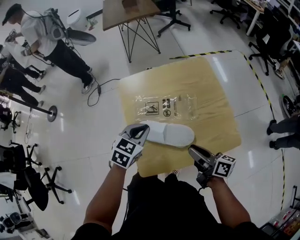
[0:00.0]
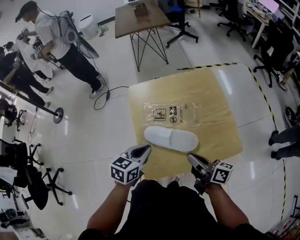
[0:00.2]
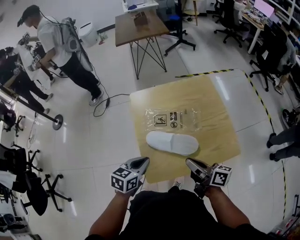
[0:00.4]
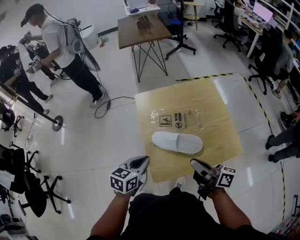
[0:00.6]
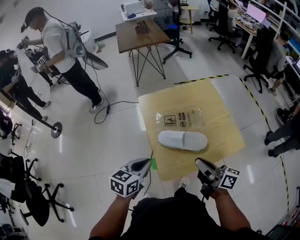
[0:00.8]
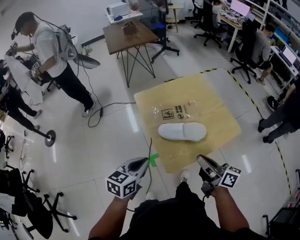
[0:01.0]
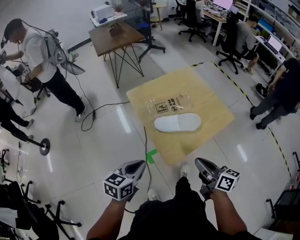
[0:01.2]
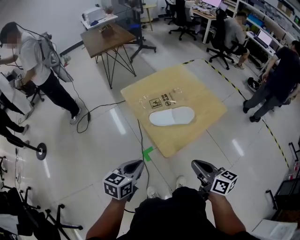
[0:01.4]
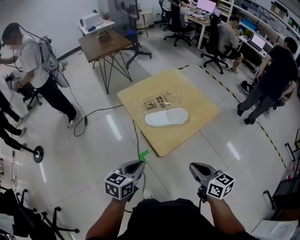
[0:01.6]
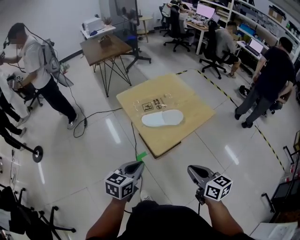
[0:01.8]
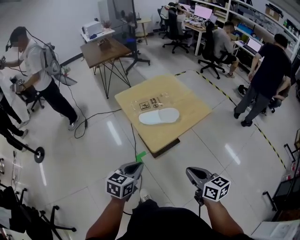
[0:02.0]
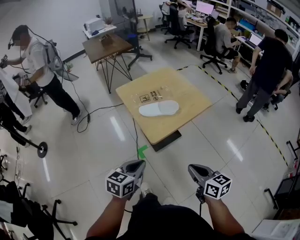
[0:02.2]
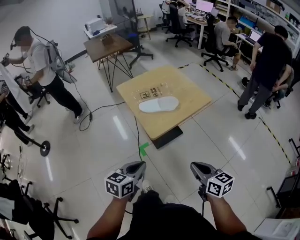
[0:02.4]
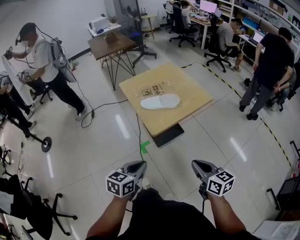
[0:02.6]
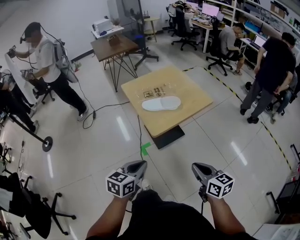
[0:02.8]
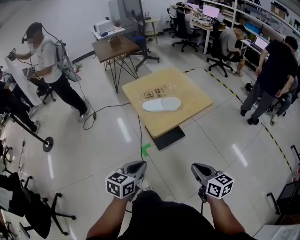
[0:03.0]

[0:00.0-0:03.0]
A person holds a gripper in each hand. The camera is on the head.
0:00.0 to 0:01.6: The two grippers go some 35 cm backward and to the left. The left gripper turns by roughly 30 degrees. Meanwhile the right gripper rotates about 40 degrees, and closes its fingers.
0:01.6 to 0:03.0: Both grippers move backward and to the right, some 20 cm.

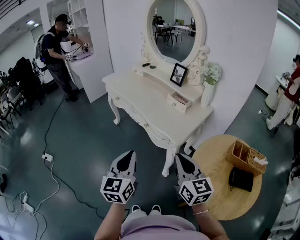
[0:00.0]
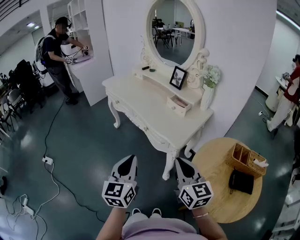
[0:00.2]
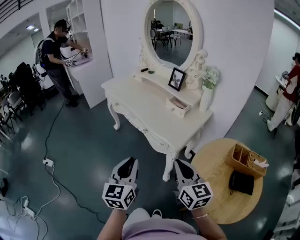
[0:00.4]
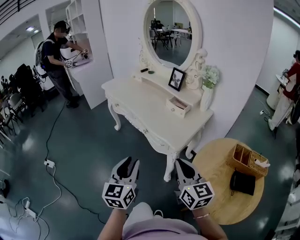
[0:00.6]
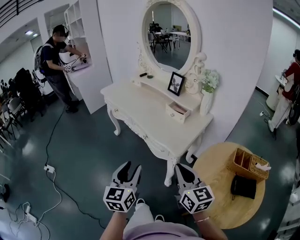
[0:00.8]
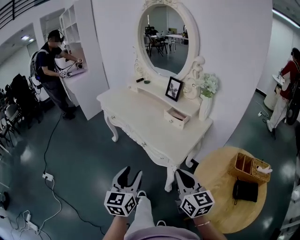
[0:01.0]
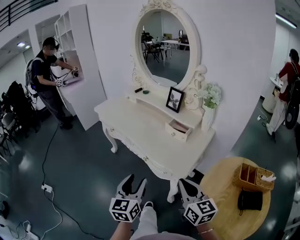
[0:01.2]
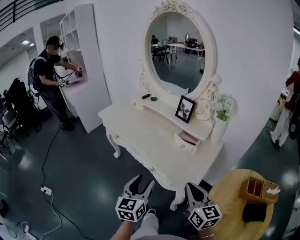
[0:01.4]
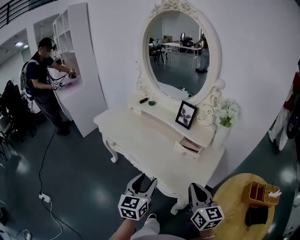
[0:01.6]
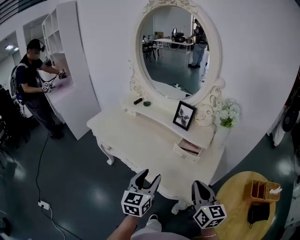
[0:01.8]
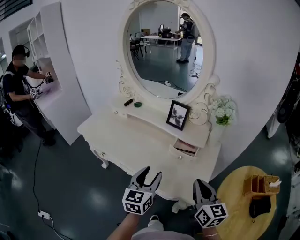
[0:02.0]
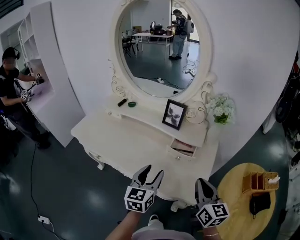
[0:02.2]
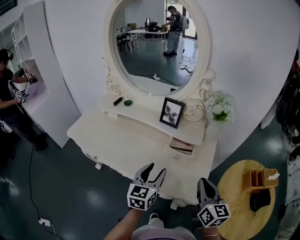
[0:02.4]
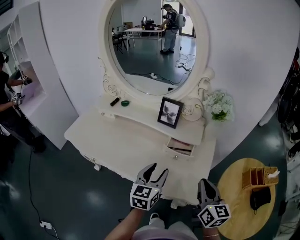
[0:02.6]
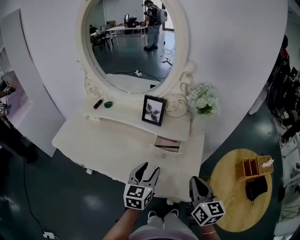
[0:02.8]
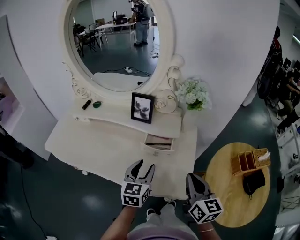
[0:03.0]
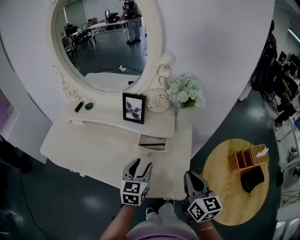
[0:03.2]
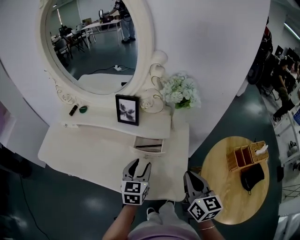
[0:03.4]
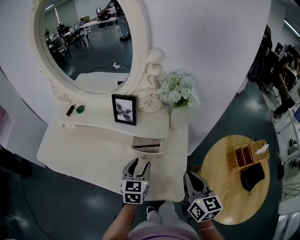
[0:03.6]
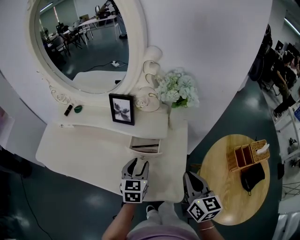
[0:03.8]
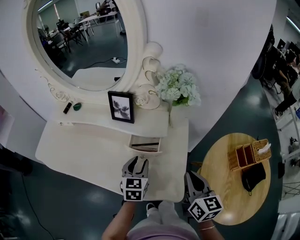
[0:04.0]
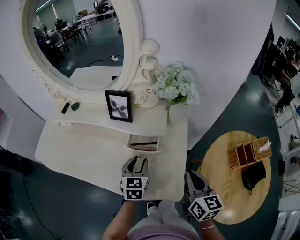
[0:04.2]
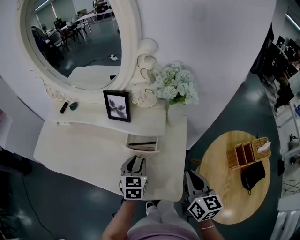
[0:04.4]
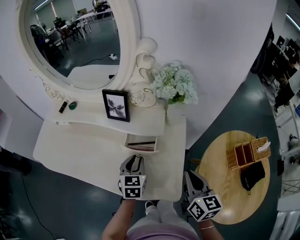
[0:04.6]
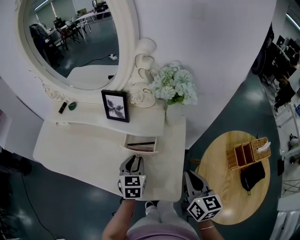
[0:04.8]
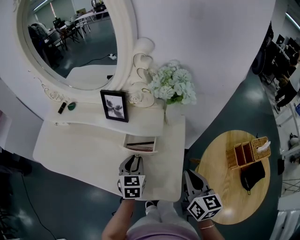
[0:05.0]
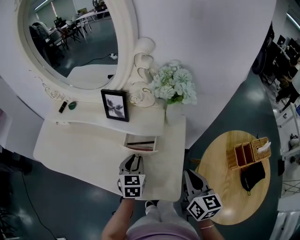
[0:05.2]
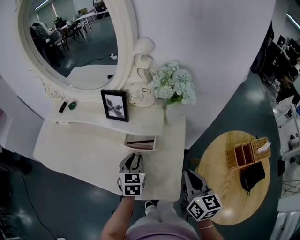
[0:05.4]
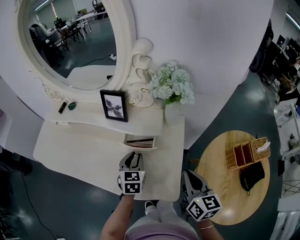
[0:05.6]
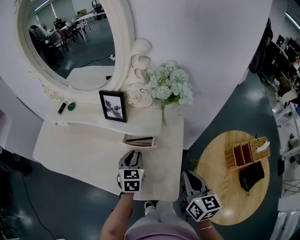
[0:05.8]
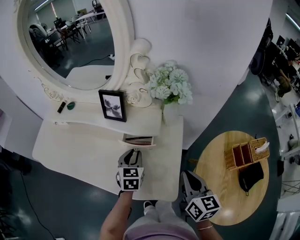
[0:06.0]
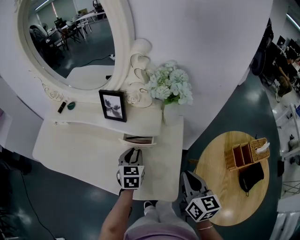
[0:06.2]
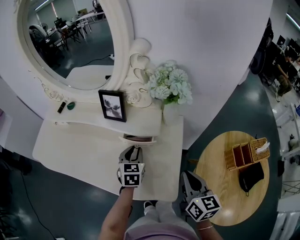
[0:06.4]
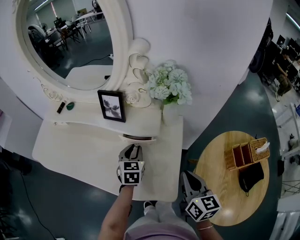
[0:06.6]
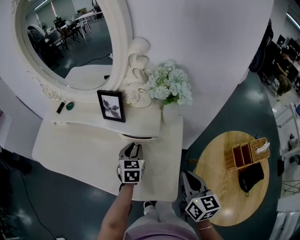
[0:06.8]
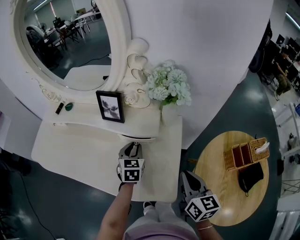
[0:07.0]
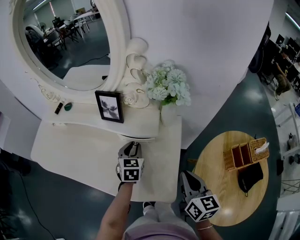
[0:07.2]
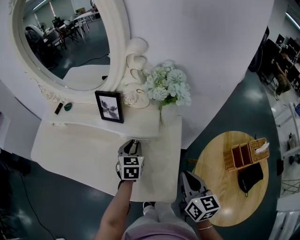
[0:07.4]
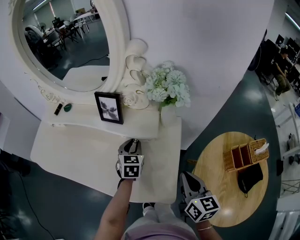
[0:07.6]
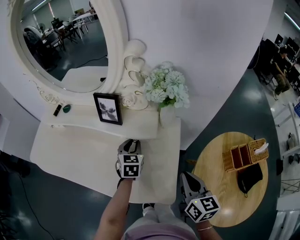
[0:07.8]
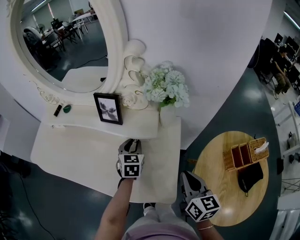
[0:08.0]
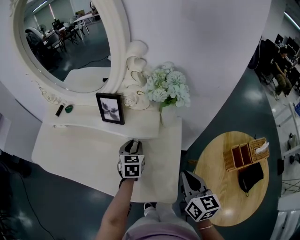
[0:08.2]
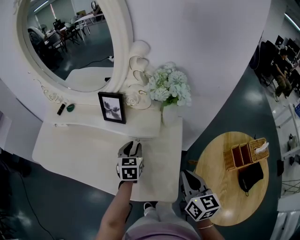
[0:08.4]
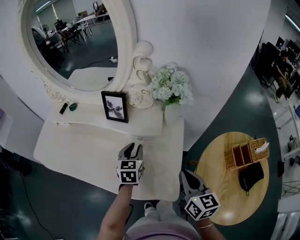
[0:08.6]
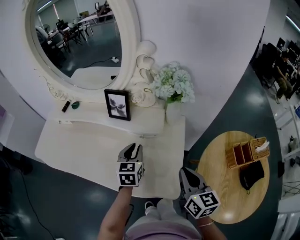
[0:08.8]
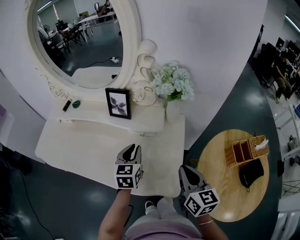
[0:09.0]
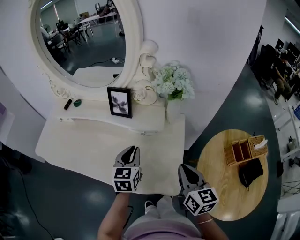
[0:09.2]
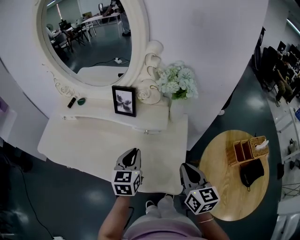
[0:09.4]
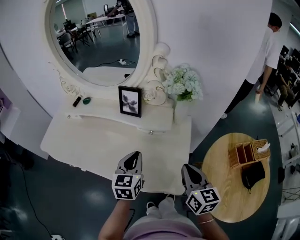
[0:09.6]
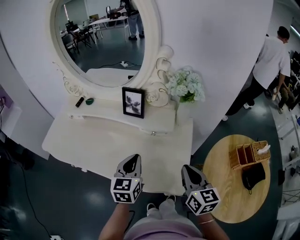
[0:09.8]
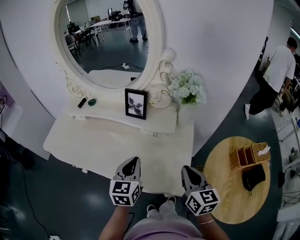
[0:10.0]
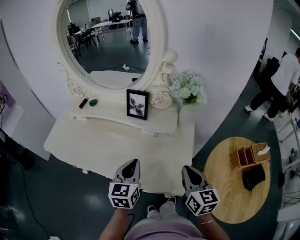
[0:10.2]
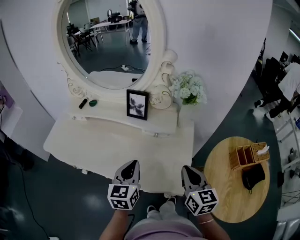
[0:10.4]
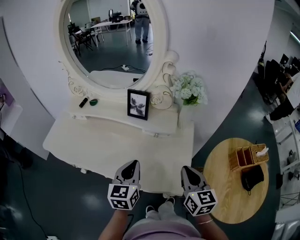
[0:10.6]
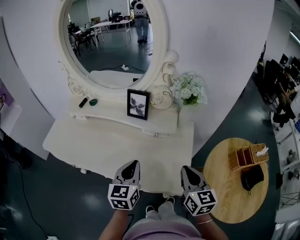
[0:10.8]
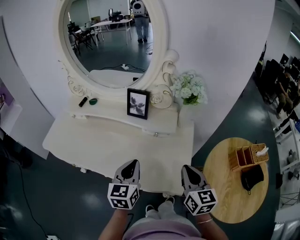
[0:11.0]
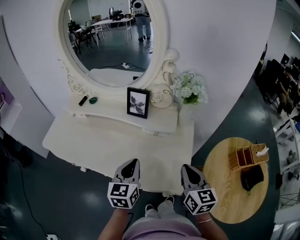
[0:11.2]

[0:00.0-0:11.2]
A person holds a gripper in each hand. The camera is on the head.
0:00.0 to 0:01.6: The two grippers go roughly 25 cm forward. The left gripper opens.
0:01.6 to 0:03.2: The right gripper ends up some 10 cm from where it was, and turns by roughly 30 degrees. The left gripper changes place by about 20 cm, and swivels roughly 30 degrees.
0:03.2 to 0:04.8: The right gripper moves about 5 cm. Meanwhile the left gripper moves downward and forward, some 10 cm, and closes its fingers.
0:04.8 to 0:06.4: There are only small adjustments of the grippers.
0:06.4 to 0:08.0: The left gripper travels forward by roughly 5 cm.
0:08.0 to 0:09.6: The right gripper moves to the left, approximately 5 cm. Meanwhile the left gripper is displaced backward, upward and to the left by some 15 cm.
0:09.6 to 0:11.2: The left gripper changes place by approximately 5 cm.

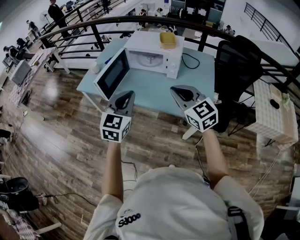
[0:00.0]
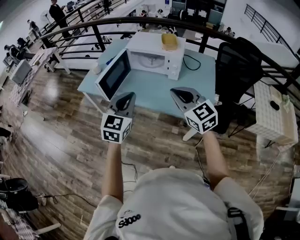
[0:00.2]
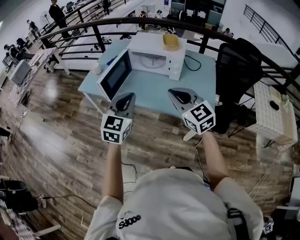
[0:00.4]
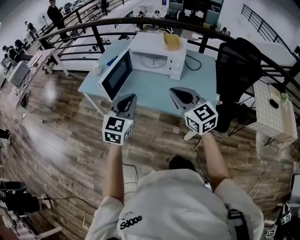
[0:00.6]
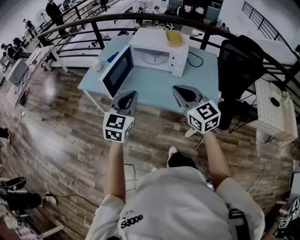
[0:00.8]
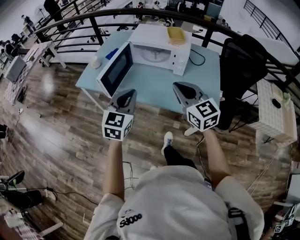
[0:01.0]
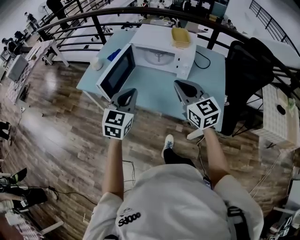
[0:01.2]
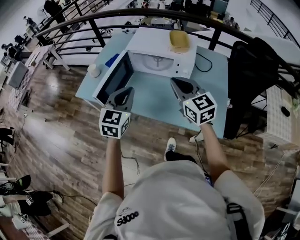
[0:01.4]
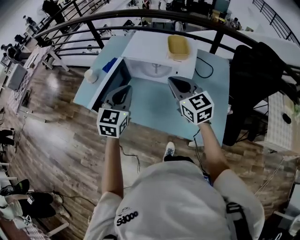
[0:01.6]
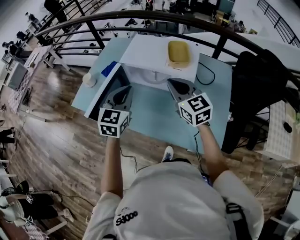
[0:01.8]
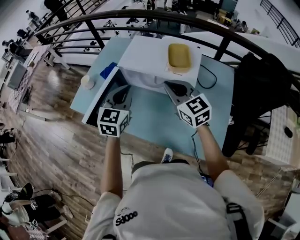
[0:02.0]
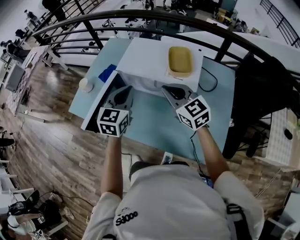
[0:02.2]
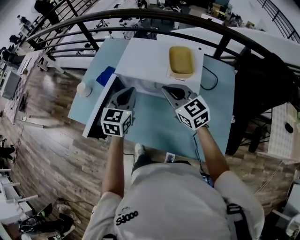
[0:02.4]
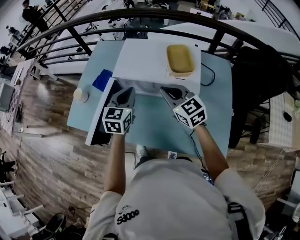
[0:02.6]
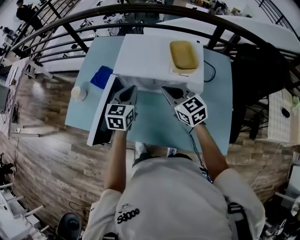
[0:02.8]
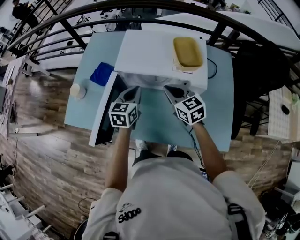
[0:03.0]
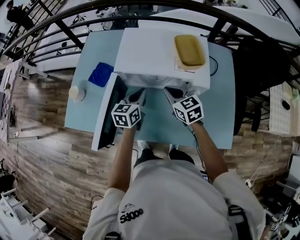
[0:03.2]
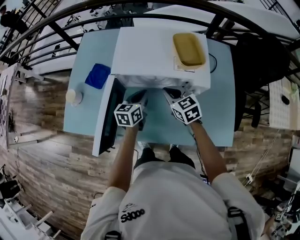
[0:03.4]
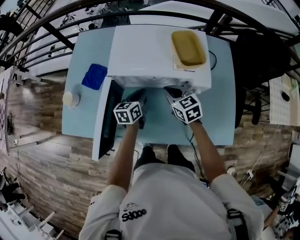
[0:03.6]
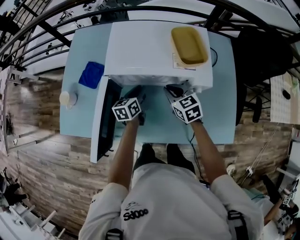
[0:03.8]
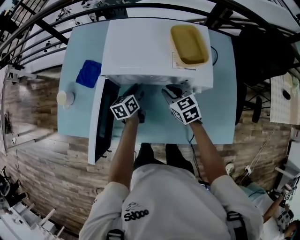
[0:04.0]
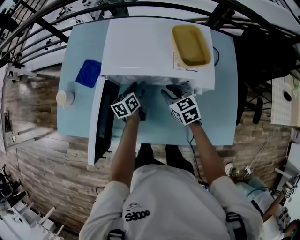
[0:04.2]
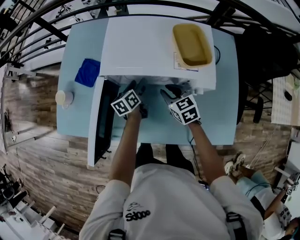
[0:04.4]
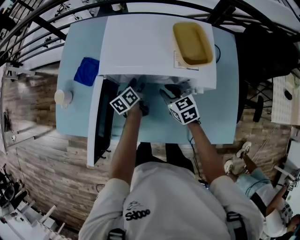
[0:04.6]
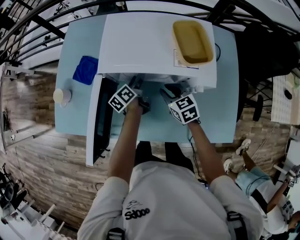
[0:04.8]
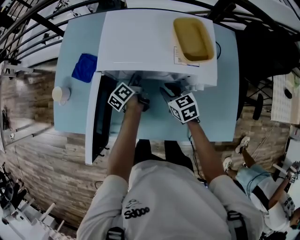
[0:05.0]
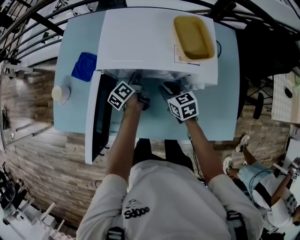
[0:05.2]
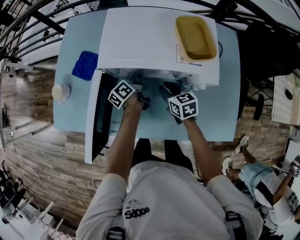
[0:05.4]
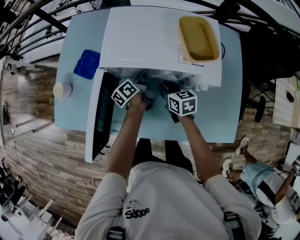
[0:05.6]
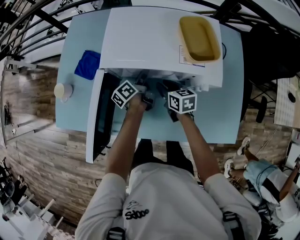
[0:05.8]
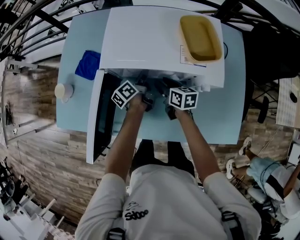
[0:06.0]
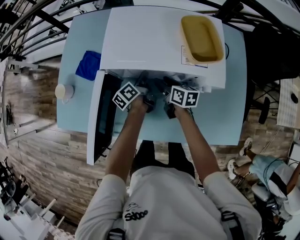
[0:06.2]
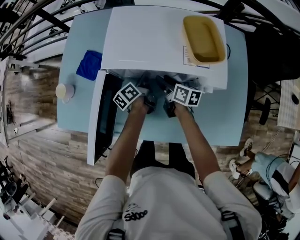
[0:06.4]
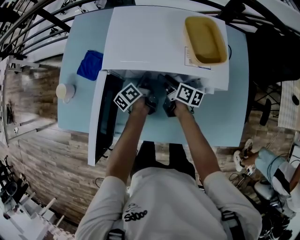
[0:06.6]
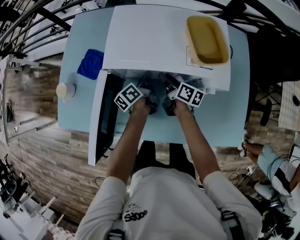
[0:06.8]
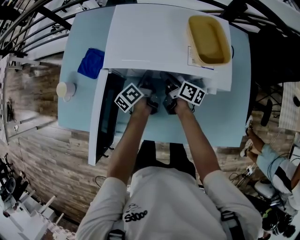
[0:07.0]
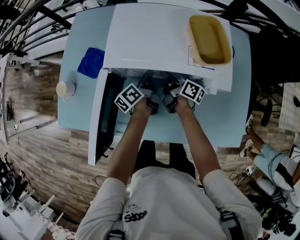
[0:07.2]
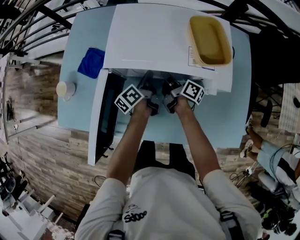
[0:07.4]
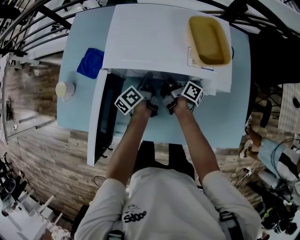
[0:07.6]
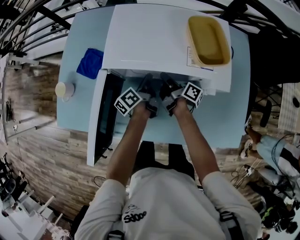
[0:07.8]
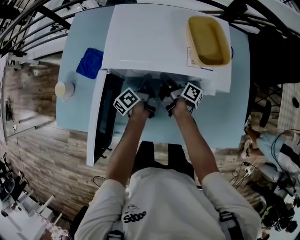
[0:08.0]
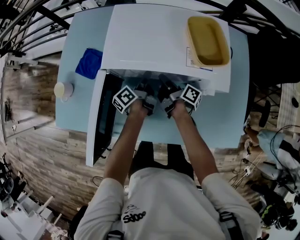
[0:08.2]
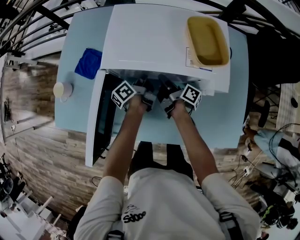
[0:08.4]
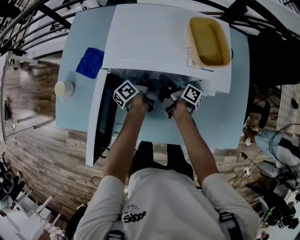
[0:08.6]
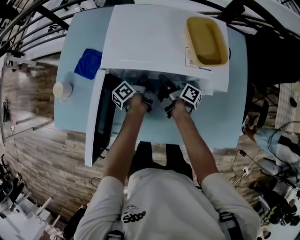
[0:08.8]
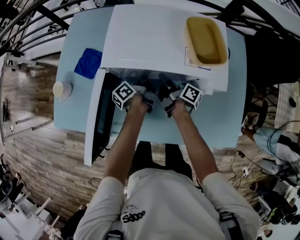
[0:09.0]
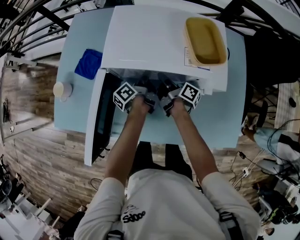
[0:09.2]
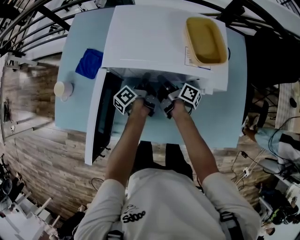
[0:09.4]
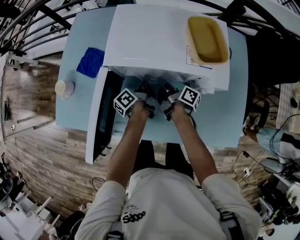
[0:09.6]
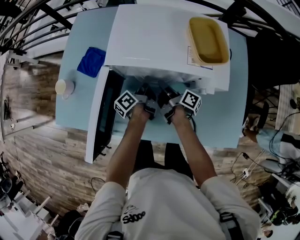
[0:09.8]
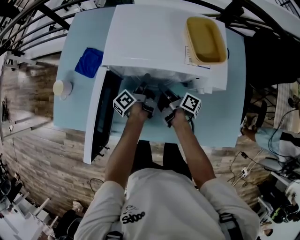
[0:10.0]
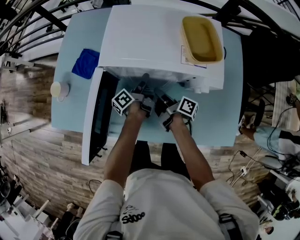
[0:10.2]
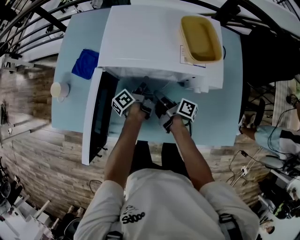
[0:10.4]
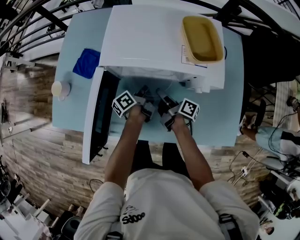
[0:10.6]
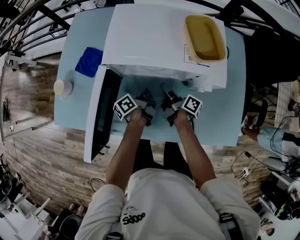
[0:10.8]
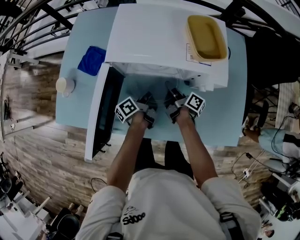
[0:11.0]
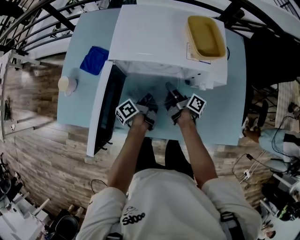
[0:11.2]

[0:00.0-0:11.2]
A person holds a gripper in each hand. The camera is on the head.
0:00.0 to 0:01.6: Both grippers travel together forward, some 25 cm.
0:01.6 to 0:03.2: The two grippers go about 25 cm forward and downward. The right gripper changes its angle by roughly 20 degrees. Meanwhile the left gripper swivels roughly 30 degrees.
0:03.2 to 0:04.8: The left gripper travels downward and forward by about 15 cm, rolls counterclockwise, seen from behind, by approximately 40 degrees, and opens up; the right gripper shifts about 10 cm downward.
0:04.8 to 0:06.4: The right gripper shifts approximately 5 cm forward, rotates around the line of its fingers by about 40 degrees, clockwise from behind, and opens; the left gripper closes its fingers.
0:06.4 to 0:08.0: The right gripper swivels some 40 degrees, and closes its fingers.
0:08.0 to 0:09.6: The left gripper opens, then closes again.
0:09.6 to 0:11.2: The right gripper ends up some 5 cm from where it was, and opens, then closes again; the left gripper is displaced backward by roughly 10 cm, and opens and closes again.
